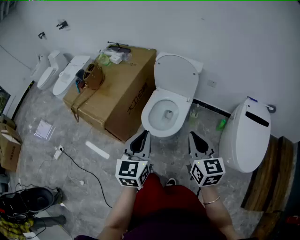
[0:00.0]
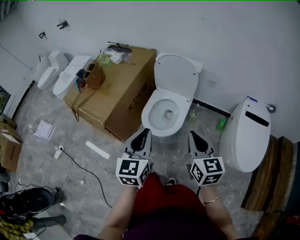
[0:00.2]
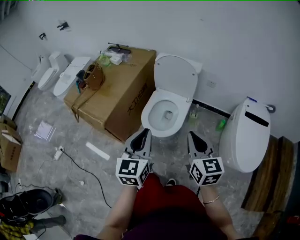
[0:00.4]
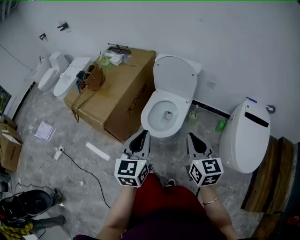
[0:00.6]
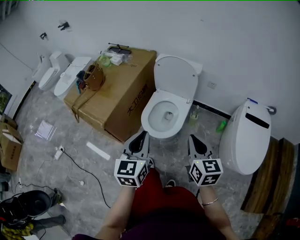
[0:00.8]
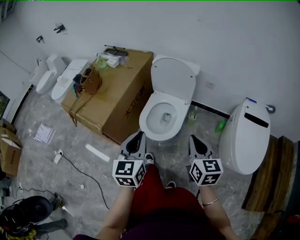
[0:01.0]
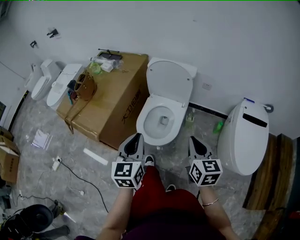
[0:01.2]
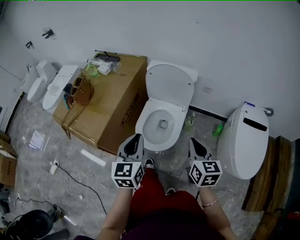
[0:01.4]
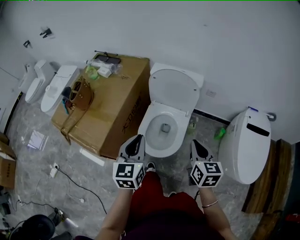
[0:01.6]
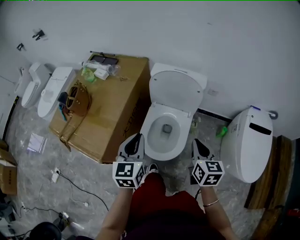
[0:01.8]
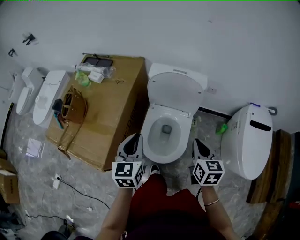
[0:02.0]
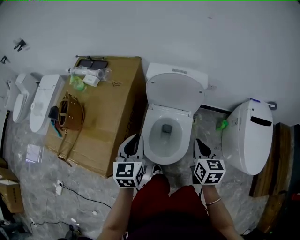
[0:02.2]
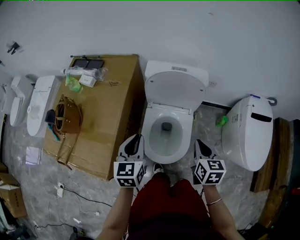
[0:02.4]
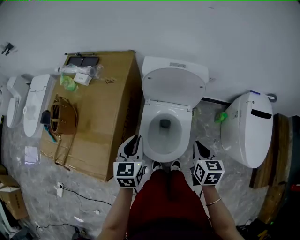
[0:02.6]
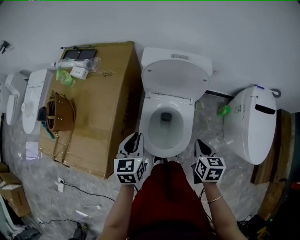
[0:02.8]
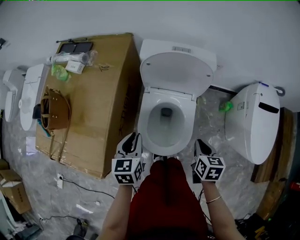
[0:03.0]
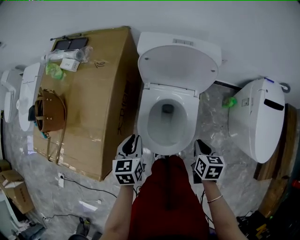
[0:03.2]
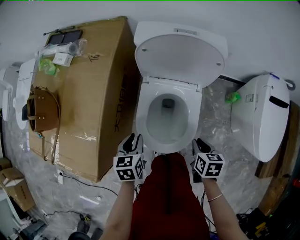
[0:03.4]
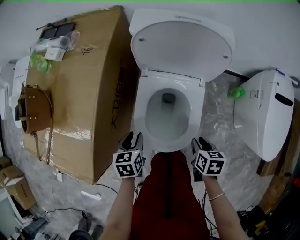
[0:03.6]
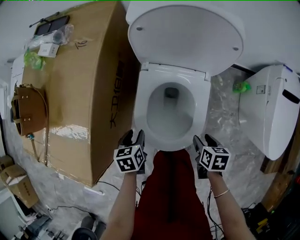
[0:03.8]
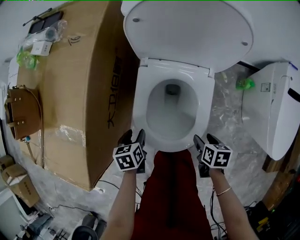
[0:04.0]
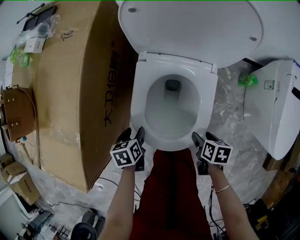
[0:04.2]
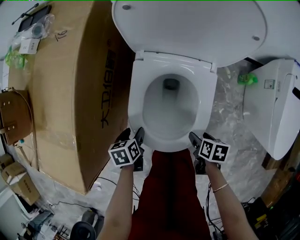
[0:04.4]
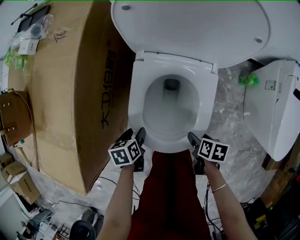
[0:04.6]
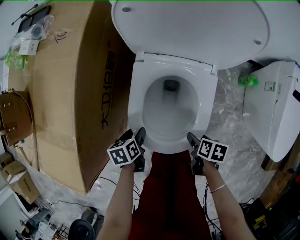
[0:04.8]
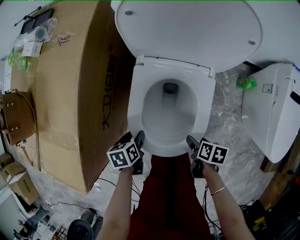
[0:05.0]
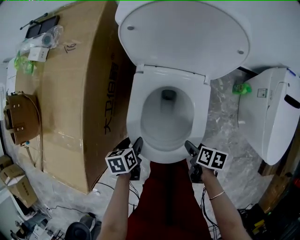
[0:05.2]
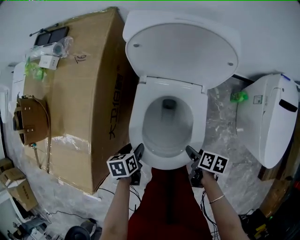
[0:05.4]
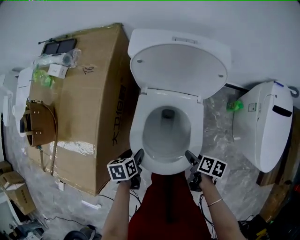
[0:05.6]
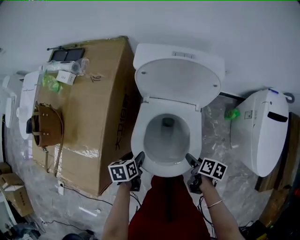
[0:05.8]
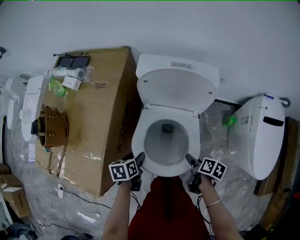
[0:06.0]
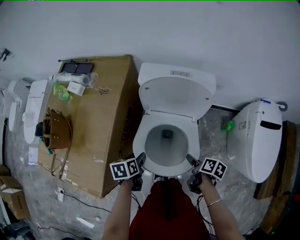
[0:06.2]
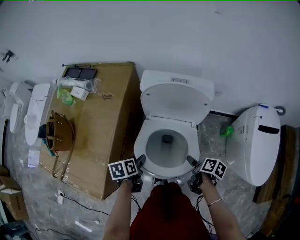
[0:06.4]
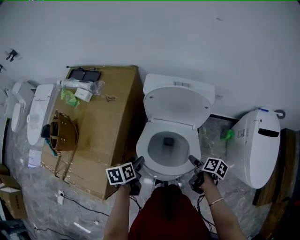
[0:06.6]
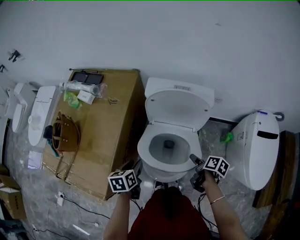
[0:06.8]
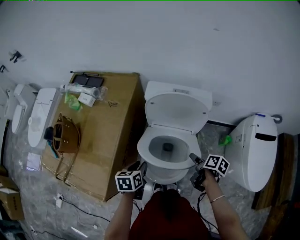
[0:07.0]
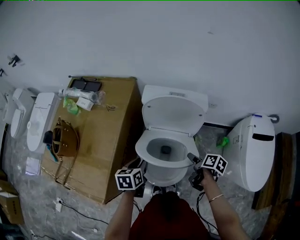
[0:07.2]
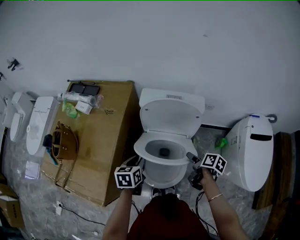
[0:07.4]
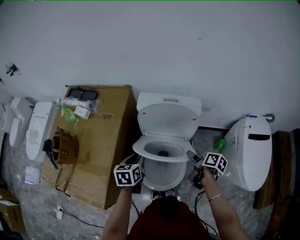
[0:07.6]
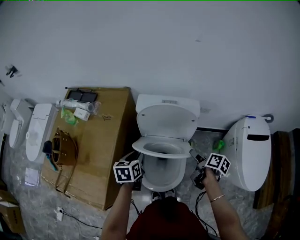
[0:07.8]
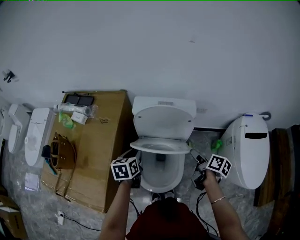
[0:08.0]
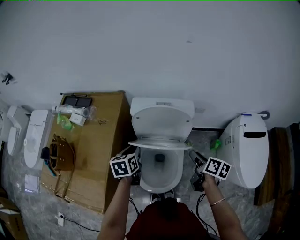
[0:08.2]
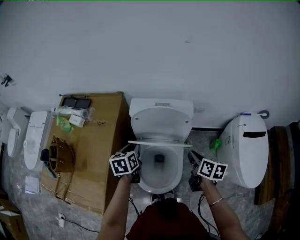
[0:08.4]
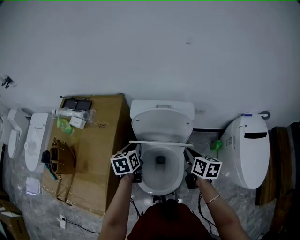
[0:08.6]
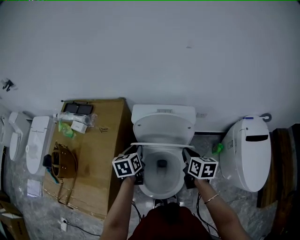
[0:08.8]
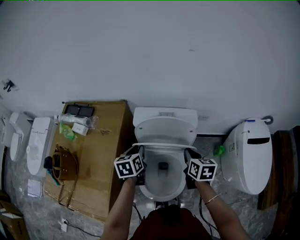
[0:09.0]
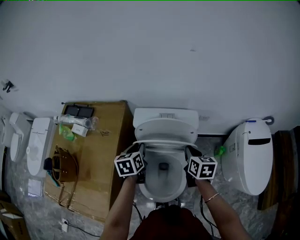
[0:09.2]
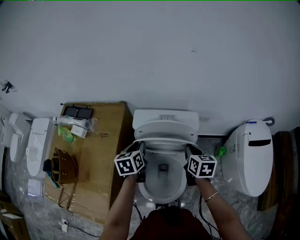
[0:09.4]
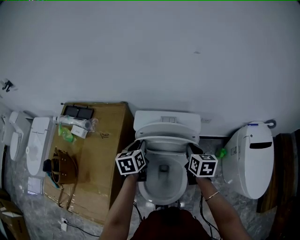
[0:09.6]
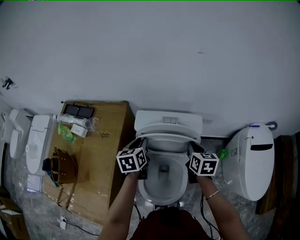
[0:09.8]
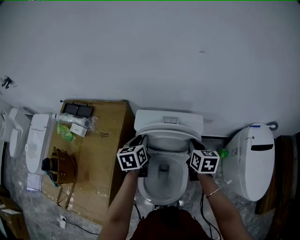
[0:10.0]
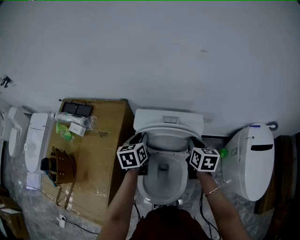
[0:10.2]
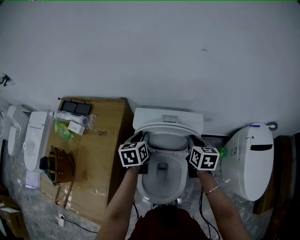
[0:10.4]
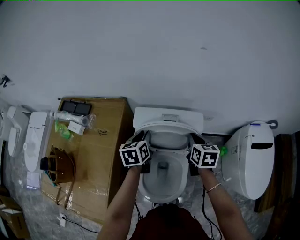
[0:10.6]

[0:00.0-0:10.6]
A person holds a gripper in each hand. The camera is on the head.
0:00.0 to 0:01.6: The left gripper heads forward, covering roughly 15 cm; the right gripper travels forward and downward by about 15 cm.
0:01.6 to 0:03.0: The right gripper is displaced downward and forward by roughly 20 cm, and turns by some 30 degrees, while the left gripper shifts roughly 25 cm downward, forward and to the left, and changes its angle by some 20 degrees.
0:03.0 to 0:04.6: The grippers both shift downward by approximately 30 cm. The left gripper swivels about 40 degrees, and opens its fingers. Meanwhile the right gripper turns by approximately 30 degrees, and opens its fingers.
0:04.6 to 0:06.0: Both grippers travel together upward, roughly 20 cm. The right gripper changes its angle by roughly 20 degrees.
0:06.0 to 0:07.6: Both grippers travel together upward and forward, approximately 15 cm. The left gripper changes its angle by approximately 20 degrees, and closes its fingers.
0:07.6 to 0:09.0: The left gripper shifts about 10 cm forward. Meanwhile the right gripper shifts approximately 10 cm upward and forward, rotates around the line of its fingers by roughly 40 degrees, counterclockwise from behind, and closes.
0:09.0 to 0:10.6: The grippers both shift forward by roughly 10 cm.

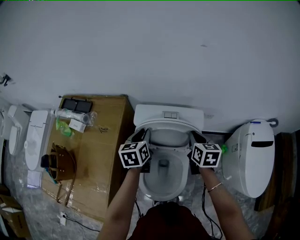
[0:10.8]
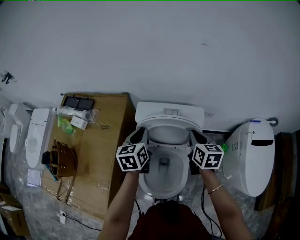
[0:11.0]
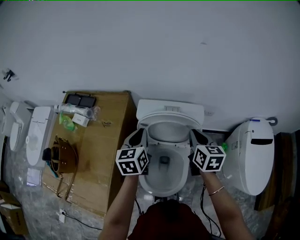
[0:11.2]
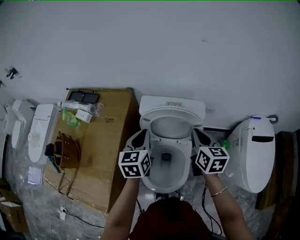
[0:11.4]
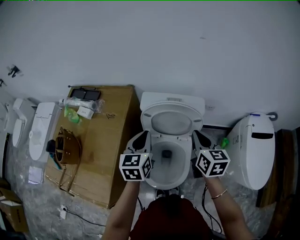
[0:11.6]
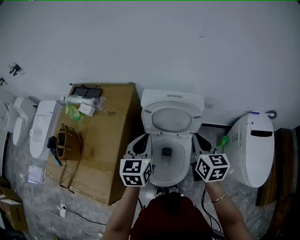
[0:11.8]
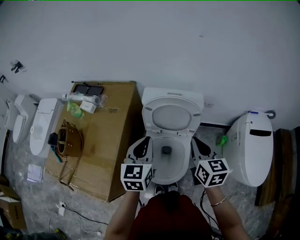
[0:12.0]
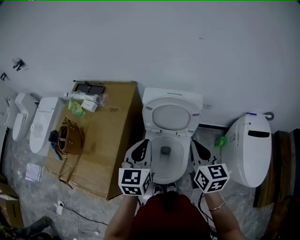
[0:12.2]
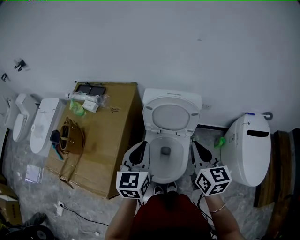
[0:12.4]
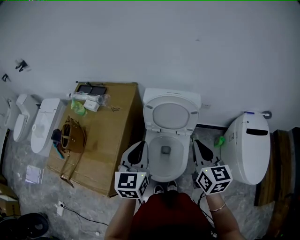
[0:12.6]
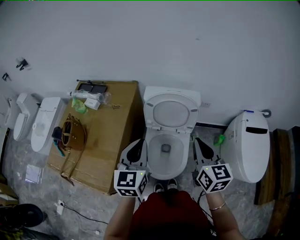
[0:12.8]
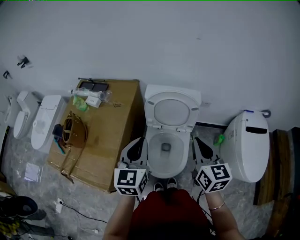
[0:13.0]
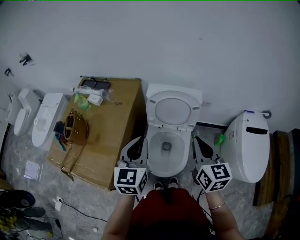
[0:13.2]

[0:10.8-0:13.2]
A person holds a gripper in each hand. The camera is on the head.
0:10.8 to 0:12.0: Both grippers move backward and upward, about 20 cm.
0:12.0 to 0:13.2: The two grippers go roughly 10 cm backward and upward.

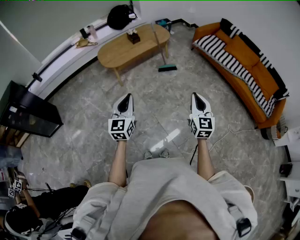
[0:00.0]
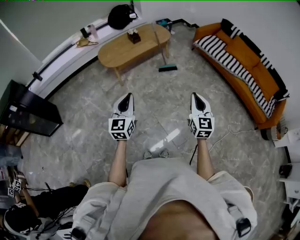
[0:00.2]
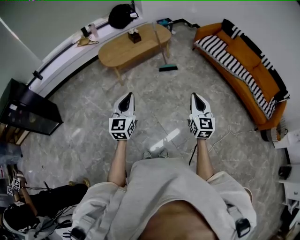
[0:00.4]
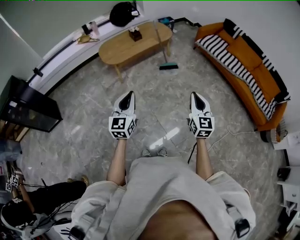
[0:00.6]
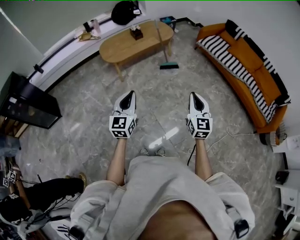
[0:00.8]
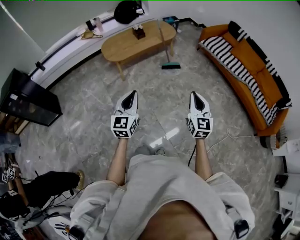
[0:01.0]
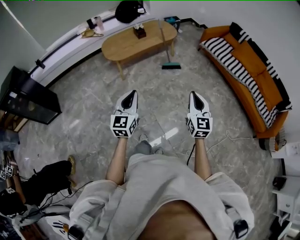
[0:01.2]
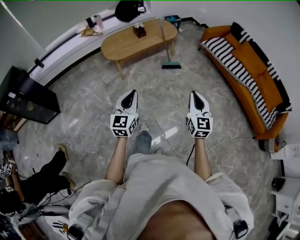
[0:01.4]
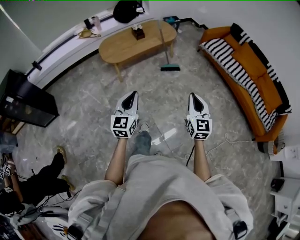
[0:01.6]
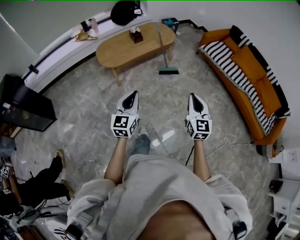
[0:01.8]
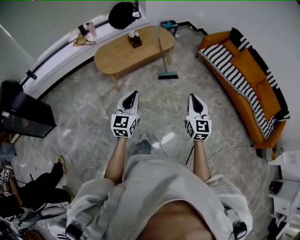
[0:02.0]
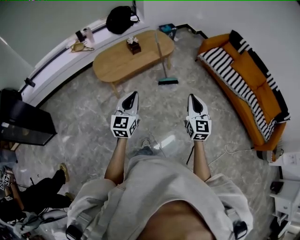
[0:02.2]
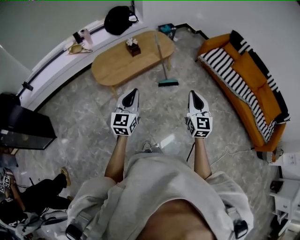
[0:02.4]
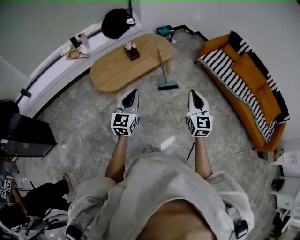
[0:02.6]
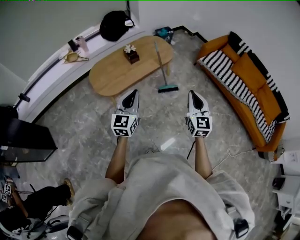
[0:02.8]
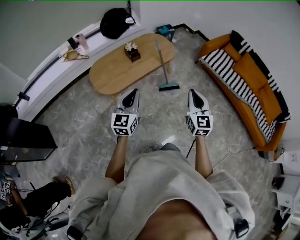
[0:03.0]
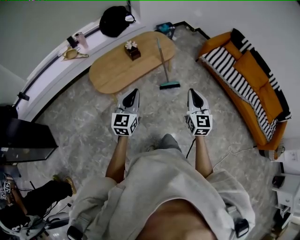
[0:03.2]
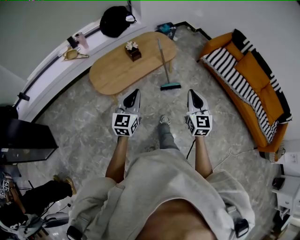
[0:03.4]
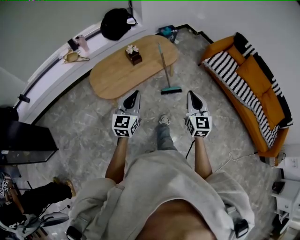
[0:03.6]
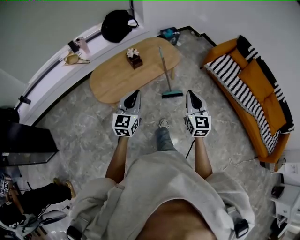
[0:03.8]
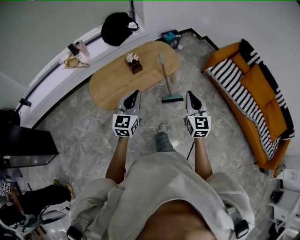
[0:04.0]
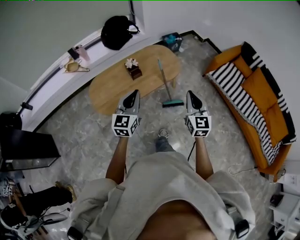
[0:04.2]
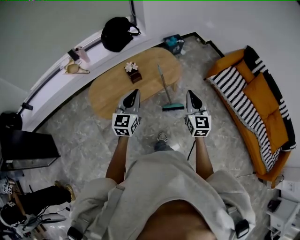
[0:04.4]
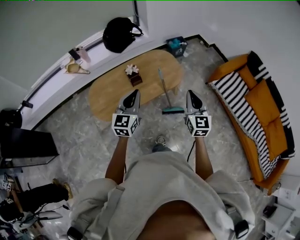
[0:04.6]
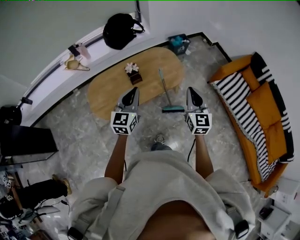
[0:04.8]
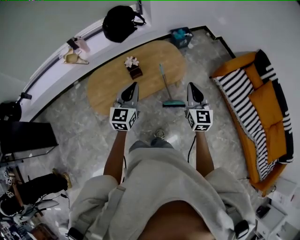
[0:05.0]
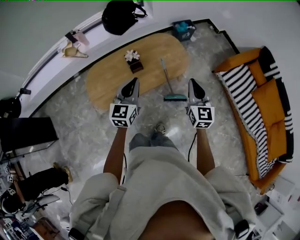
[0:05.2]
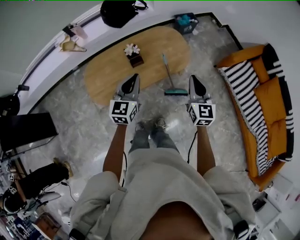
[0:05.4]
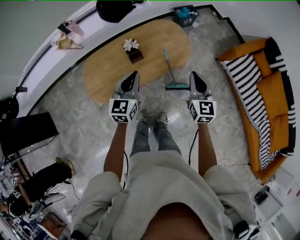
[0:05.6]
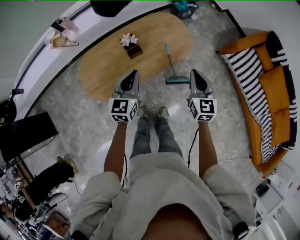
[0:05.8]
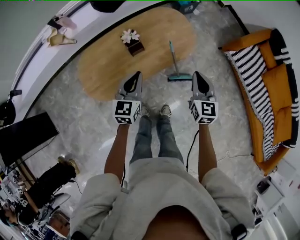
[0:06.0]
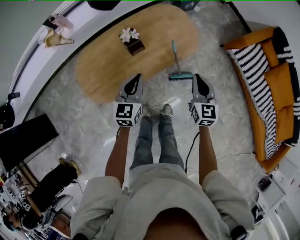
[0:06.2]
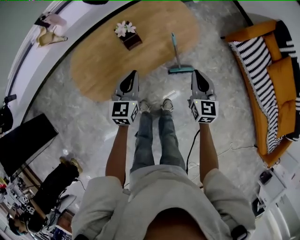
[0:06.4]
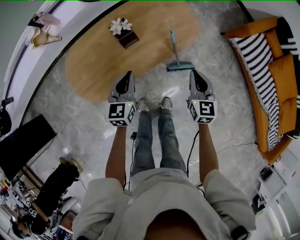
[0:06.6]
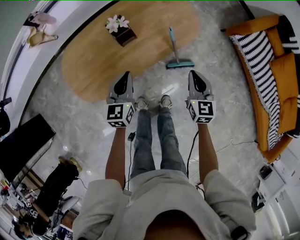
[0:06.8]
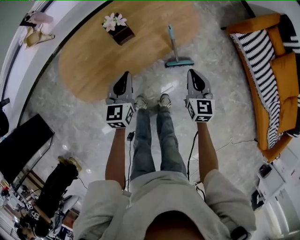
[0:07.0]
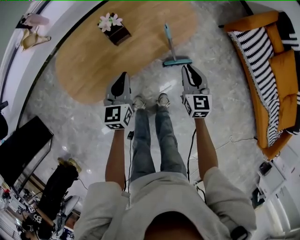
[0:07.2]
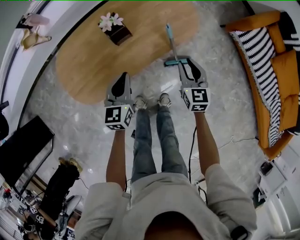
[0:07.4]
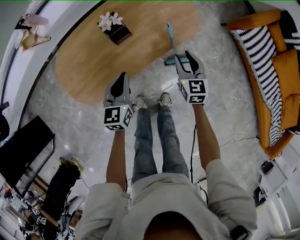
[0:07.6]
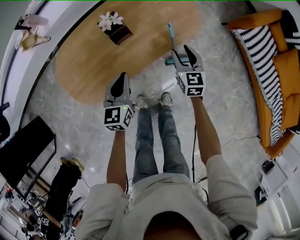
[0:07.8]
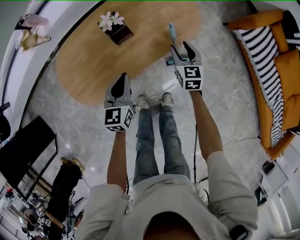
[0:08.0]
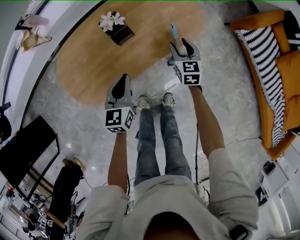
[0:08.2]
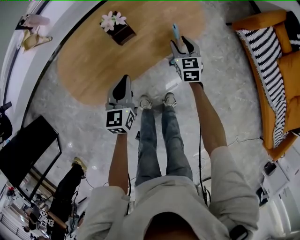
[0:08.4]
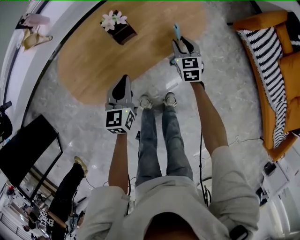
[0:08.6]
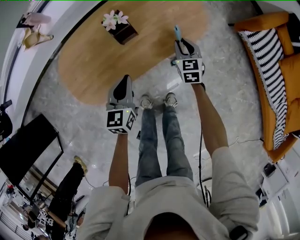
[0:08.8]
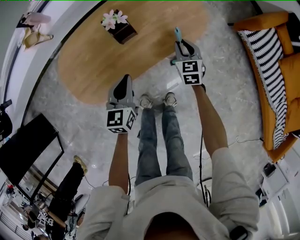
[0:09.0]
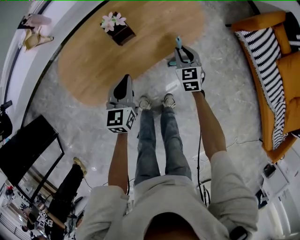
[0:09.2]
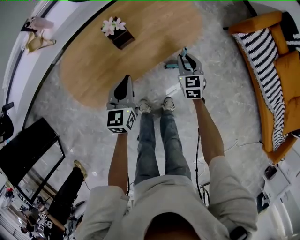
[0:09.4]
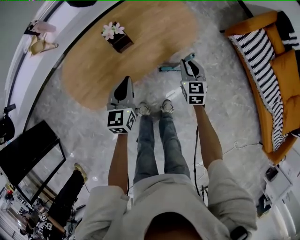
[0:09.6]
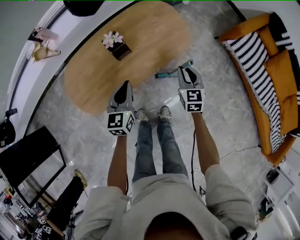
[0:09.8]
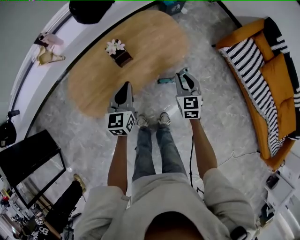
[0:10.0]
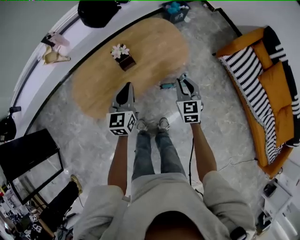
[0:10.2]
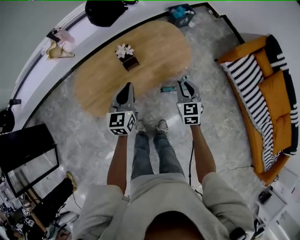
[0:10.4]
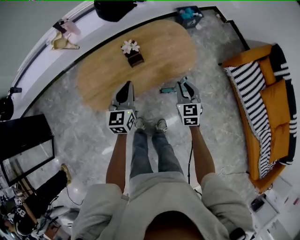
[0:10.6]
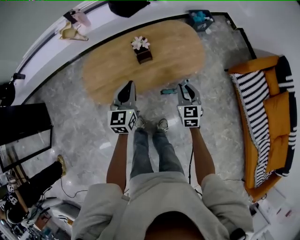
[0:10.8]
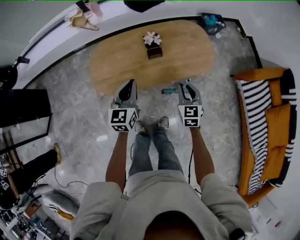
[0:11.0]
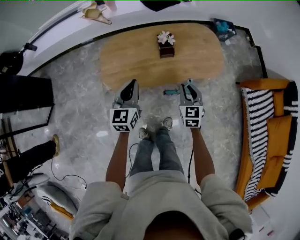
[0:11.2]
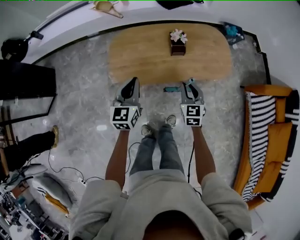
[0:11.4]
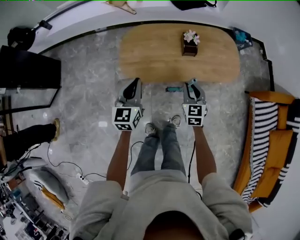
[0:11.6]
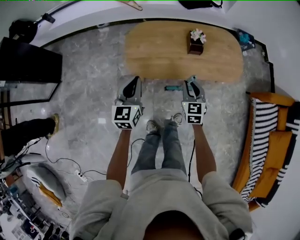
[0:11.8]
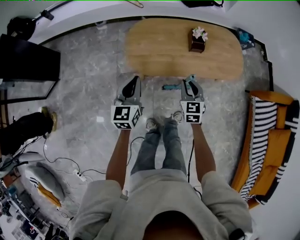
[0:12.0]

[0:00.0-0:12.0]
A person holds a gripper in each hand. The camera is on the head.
0:00.0 to 0:01.6: The grippers both shift forward by approximately 5 cm.
0:01.6 to 0:03.0: Both grippers travel together forward, some 35 cm.
0:03.0 to 0:04.4: The grippers both shift forward by roughly 30 cm.
0:04.4 to 0:06.0: Both grippers move downward and forward, approximately 25 cm.
0:06.0 to 0:07.6: The two grippers go about 20 cm downward. The right gripper opens up.
0:07.6 to 0:09.0: The right gripper shifts about 10 cm downward and forward.
0:09.0 to 0:10.4: The right gripper shifts approximately 25 cm upward and backward. The left gripper shifts about 15 cm upward.
0:10.4 to 0:12.0: The right gripper moves some 35 cm, and rotates about 30 degrees; the left gripper shifts by approximately 35 cm, and changes its angle by some 30 degrees.
